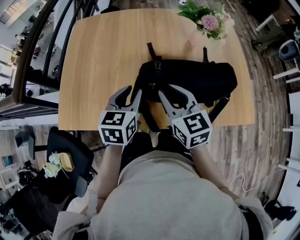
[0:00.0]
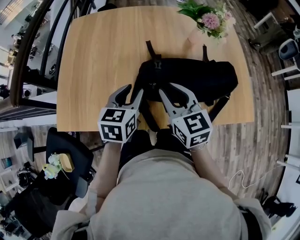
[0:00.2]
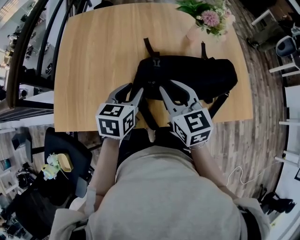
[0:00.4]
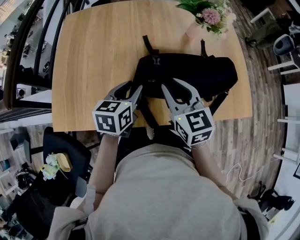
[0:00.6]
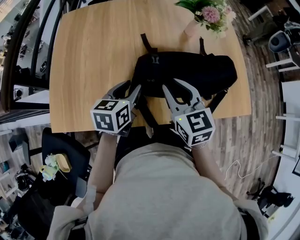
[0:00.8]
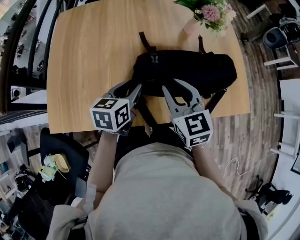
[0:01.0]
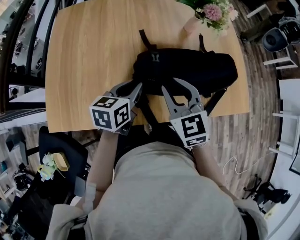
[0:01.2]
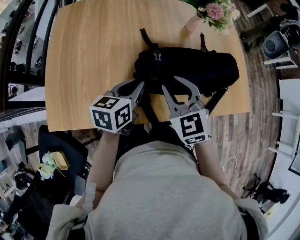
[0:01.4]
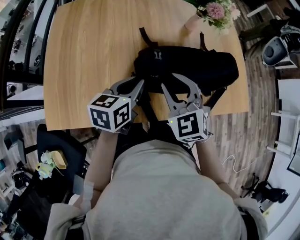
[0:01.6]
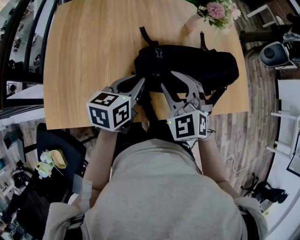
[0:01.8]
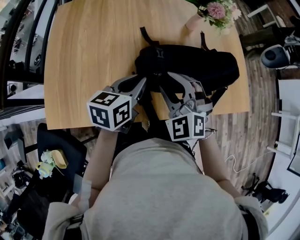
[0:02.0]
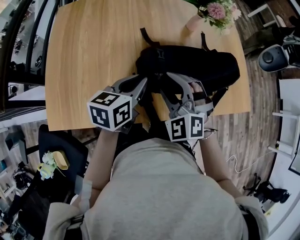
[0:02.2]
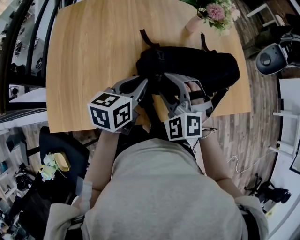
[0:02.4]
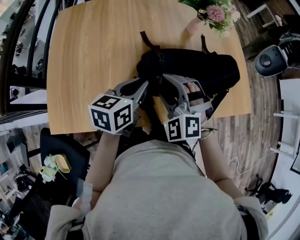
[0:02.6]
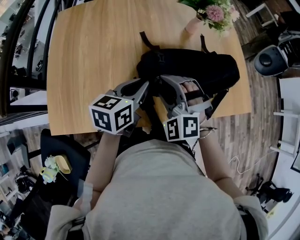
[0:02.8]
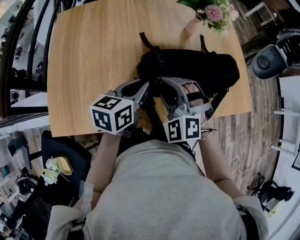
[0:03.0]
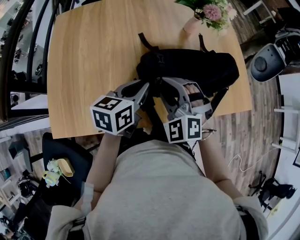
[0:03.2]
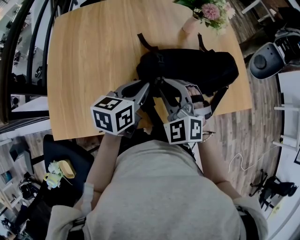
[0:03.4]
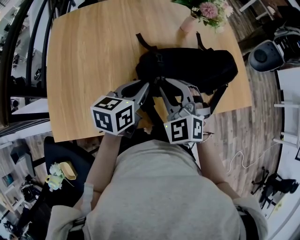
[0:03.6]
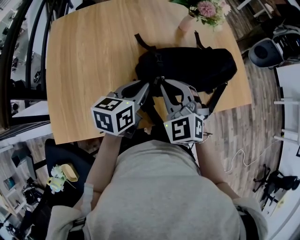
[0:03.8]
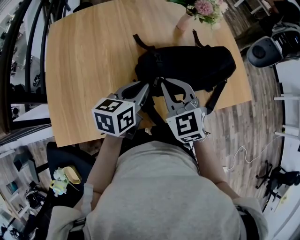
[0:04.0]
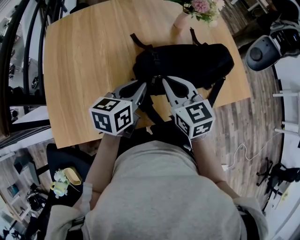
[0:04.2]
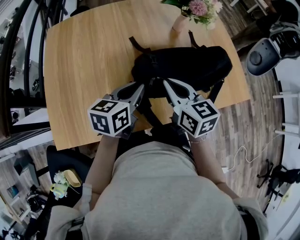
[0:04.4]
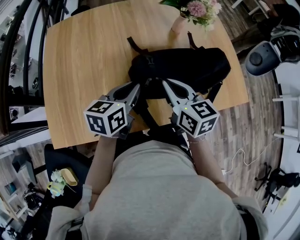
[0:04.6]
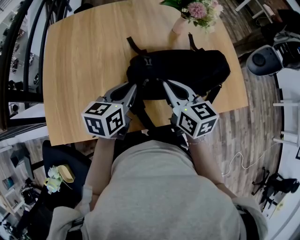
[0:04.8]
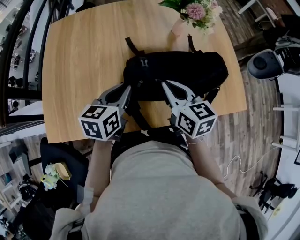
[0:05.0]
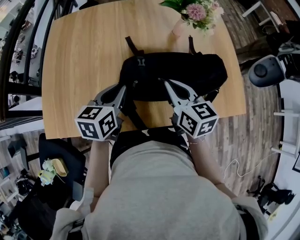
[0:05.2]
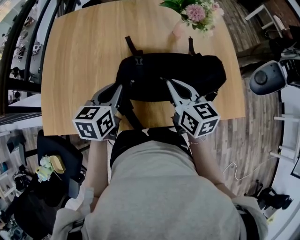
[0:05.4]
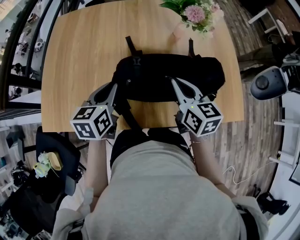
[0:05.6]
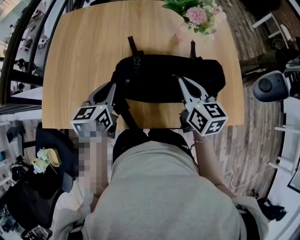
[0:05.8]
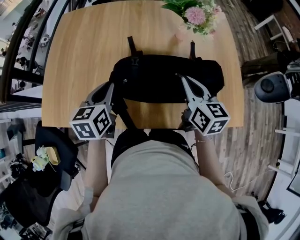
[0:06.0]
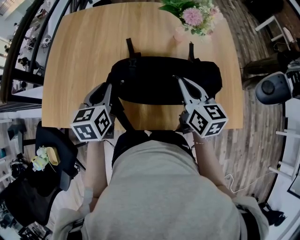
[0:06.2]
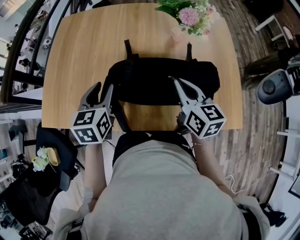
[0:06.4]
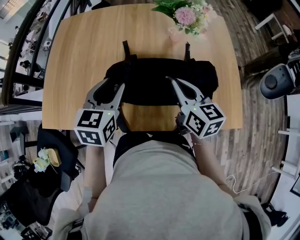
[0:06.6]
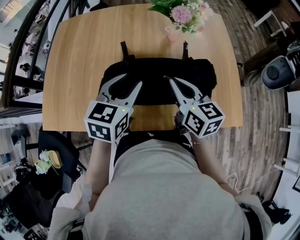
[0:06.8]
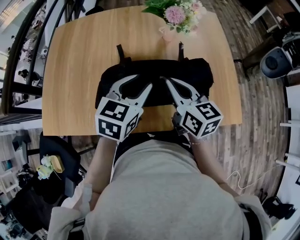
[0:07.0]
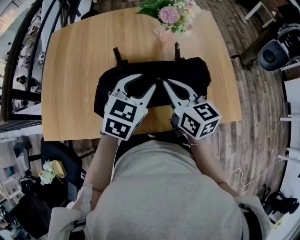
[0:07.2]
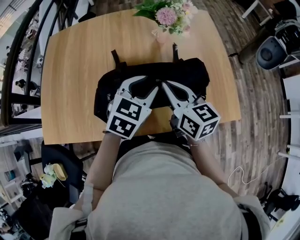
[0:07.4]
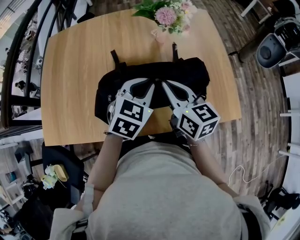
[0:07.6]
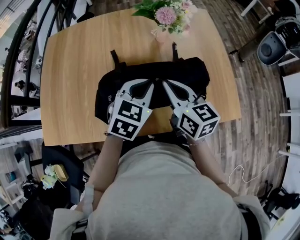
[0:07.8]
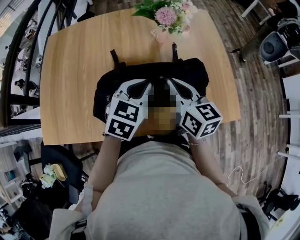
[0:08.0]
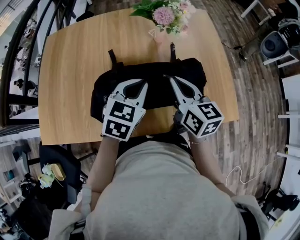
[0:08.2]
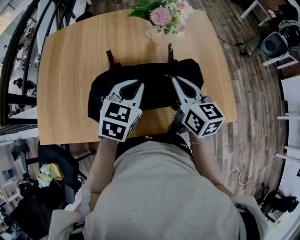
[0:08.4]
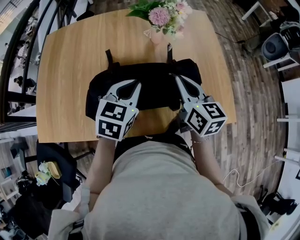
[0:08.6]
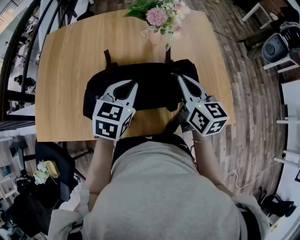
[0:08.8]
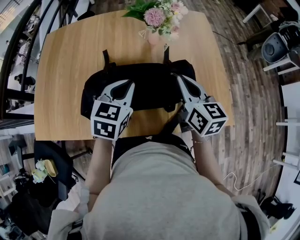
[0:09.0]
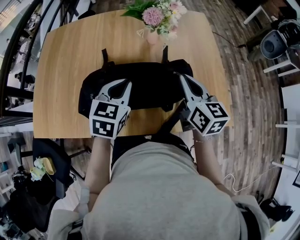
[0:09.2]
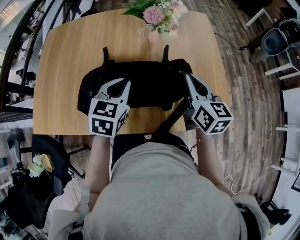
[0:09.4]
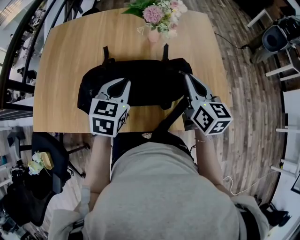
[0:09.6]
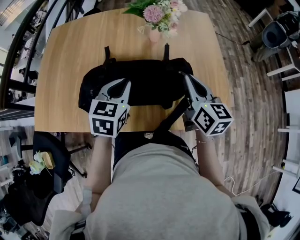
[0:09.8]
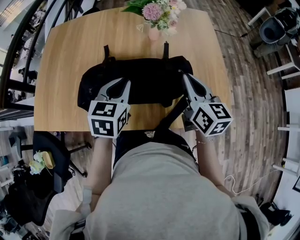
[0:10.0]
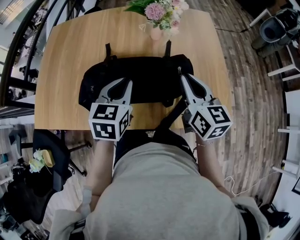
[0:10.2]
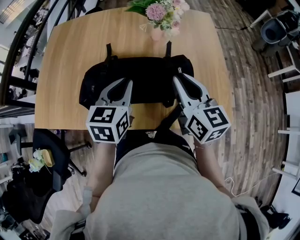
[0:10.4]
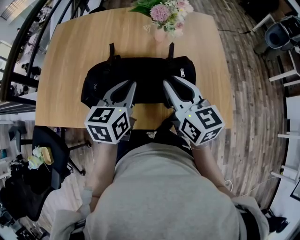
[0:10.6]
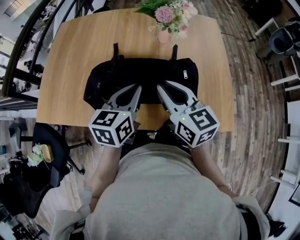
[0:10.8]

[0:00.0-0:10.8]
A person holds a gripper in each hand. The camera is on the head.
0:00.0 to 0:01.6: The right gripper rotates roughly 30 degrees; the left gripper turns by roughly 20 degrees.
0:01.6 to 0:03.0: The right gripper rotates about 30 degrees.
0:03.0 to 0:04.6: The right gripper changes place by some 5 cm, rotates around the line of its fingers by approximately 80 degrees, clockwise from behind, and closes its fingers.
0:04.6 to 0:06.2: The left gripper changes its angle by about 30 degrees, while the right gripper goes approximately 15 cm to the right.
0:06.2 to 0:07.8: The left gripper heads to the right, covering approximately 20 cm, swivels approximately 40 degrees, and opens, then closes once more.
0:07.8 to 0:09.2: The right gripper goes some 10 cm to the right.
0:09.2 to 0:10.8: The right gripper moves to the left and backward, roughly 10 cm, and swivels approximately 20 degrees; the left gripper moves about 5 cm, and rotates about 30 degrees.

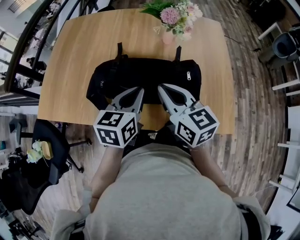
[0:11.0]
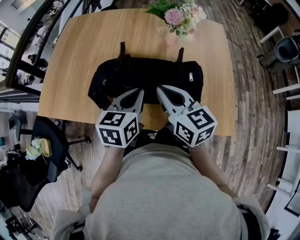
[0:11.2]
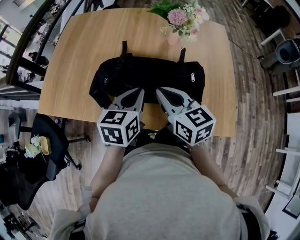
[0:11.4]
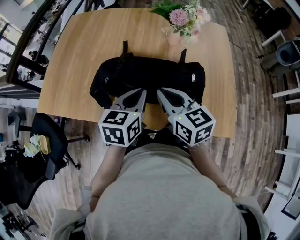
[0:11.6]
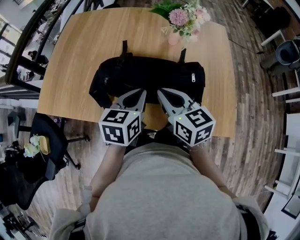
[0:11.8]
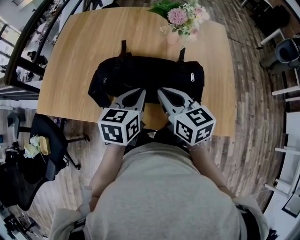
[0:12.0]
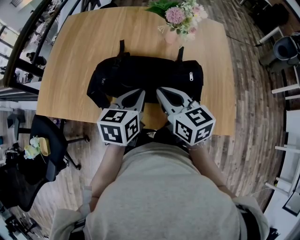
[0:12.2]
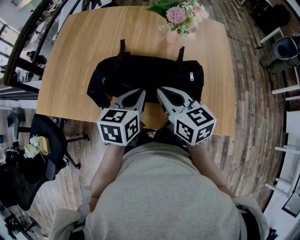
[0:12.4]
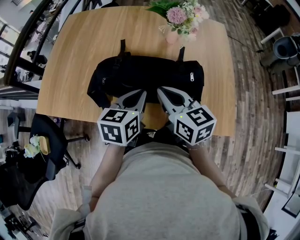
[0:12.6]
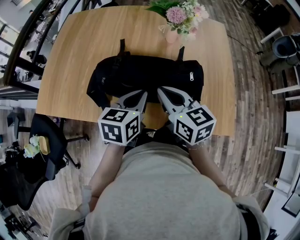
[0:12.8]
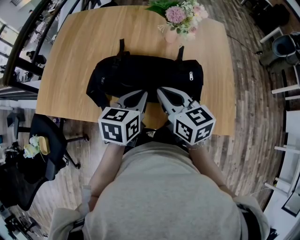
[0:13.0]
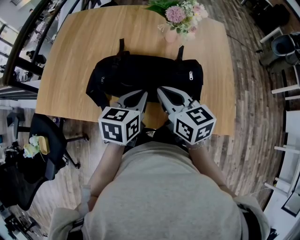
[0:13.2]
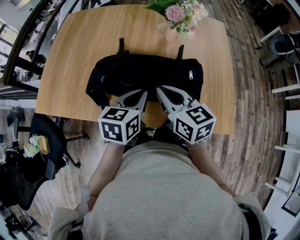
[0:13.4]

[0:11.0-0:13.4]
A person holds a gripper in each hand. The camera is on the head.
0:11.0 to 0:13.4: The grippers stay close to where they were, moving slightly.

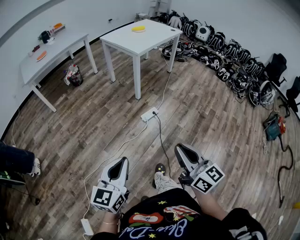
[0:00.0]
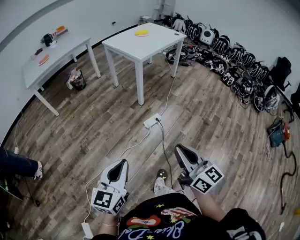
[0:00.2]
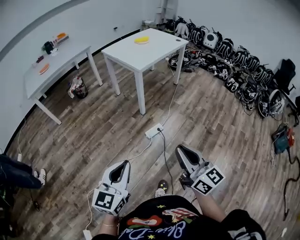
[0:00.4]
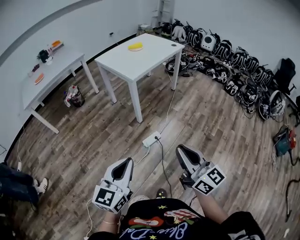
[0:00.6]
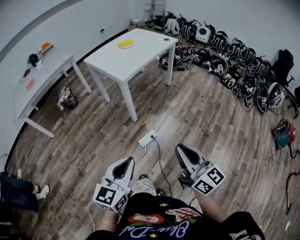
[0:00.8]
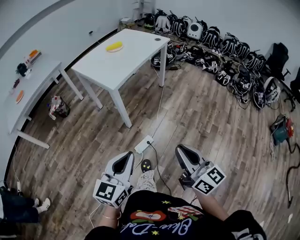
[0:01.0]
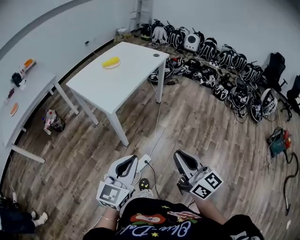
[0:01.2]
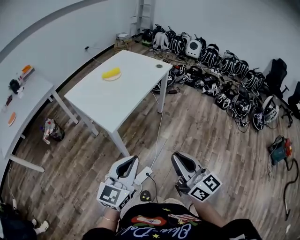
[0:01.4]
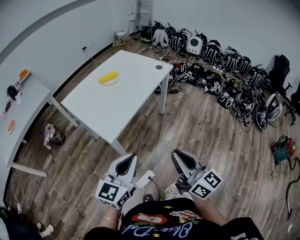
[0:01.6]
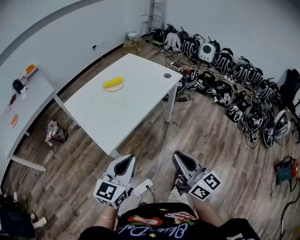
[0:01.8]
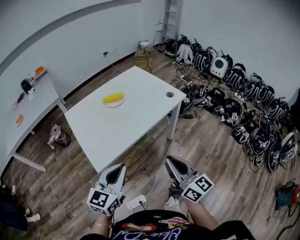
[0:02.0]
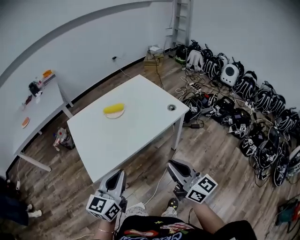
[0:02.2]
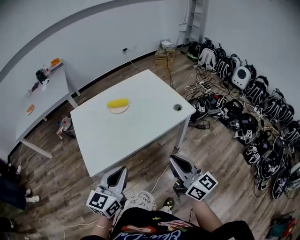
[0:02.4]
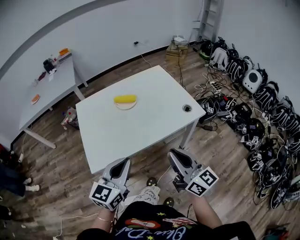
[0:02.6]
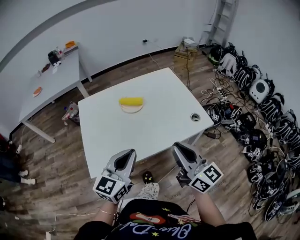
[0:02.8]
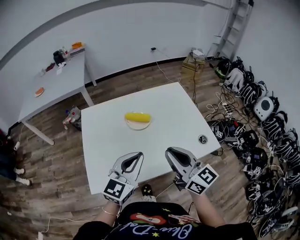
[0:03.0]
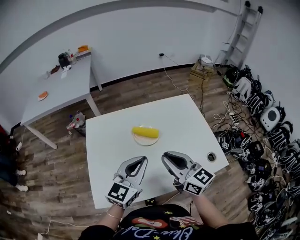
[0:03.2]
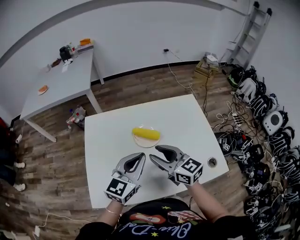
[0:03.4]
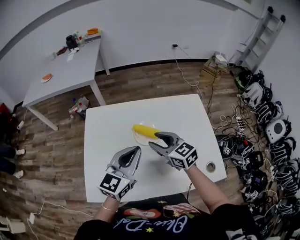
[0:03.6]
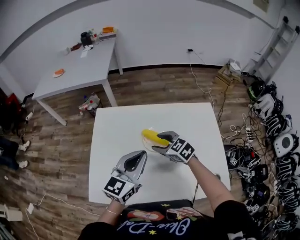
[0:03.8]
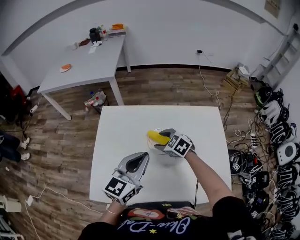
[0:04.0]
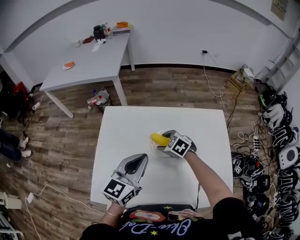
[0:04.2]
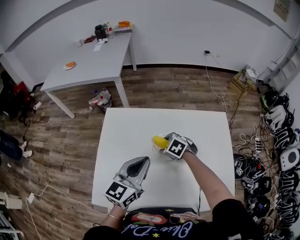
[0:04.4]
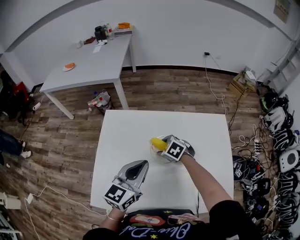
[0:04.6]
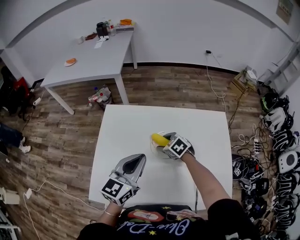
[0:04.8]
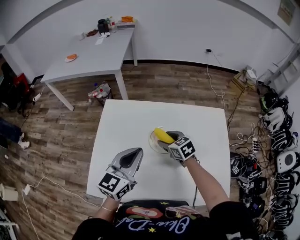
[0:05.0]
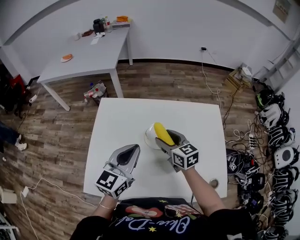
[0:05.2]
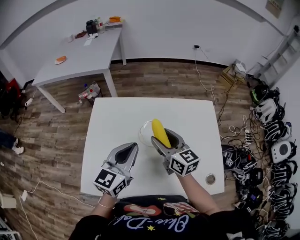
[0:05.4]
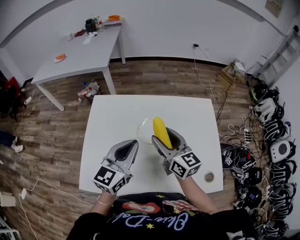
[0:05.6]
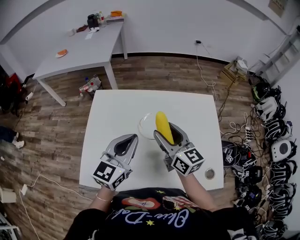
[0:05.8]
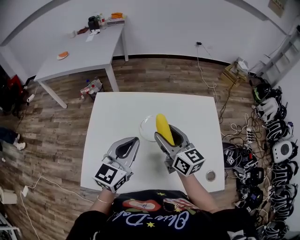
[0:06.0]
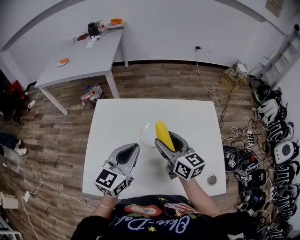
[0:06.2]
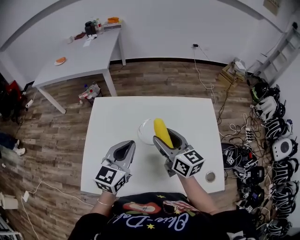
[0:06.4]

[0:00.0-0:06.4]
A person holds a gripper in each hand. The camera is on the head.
0:00.0 to 0:01.6: The two grippers travel together, forward, approximately 70 cm.
0:01.6 to 0:03.2: The pair of grippers is taken roughly 50 cm. The left gripper rotates some 30 degrees, while the right gripper rotates about 50 degrees.
0:03.2 to 0:04.8: The right gripper shifts by about 35 cm, points its fingers approximately 60 degrees further downward, and opens up. Meanwhile the left gripper changes place by about 15 cm, and rotates about 20 degrees.
0:04.8 to 0:06.4: The right gripper shifts roughly 20 cm upward and backward, and tips its fingers upward by some 50 degrees.

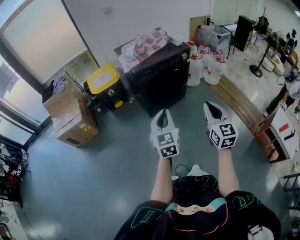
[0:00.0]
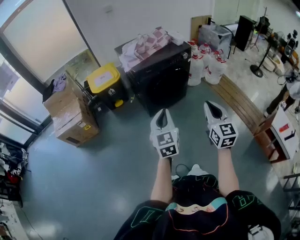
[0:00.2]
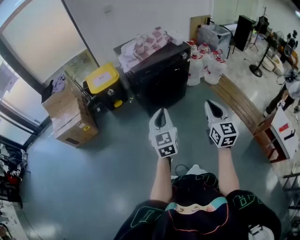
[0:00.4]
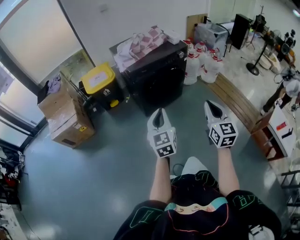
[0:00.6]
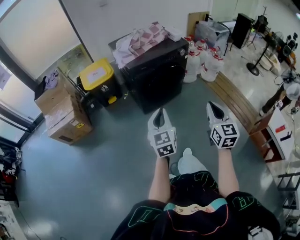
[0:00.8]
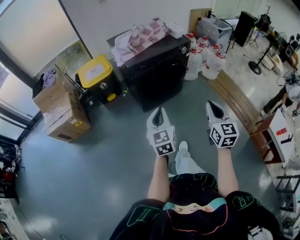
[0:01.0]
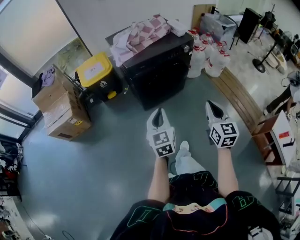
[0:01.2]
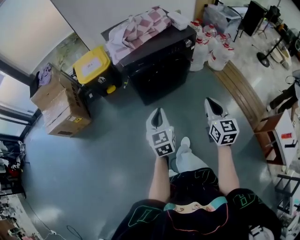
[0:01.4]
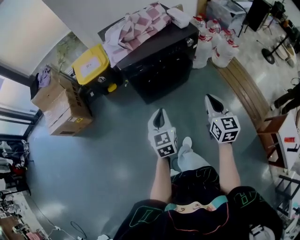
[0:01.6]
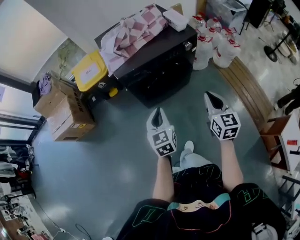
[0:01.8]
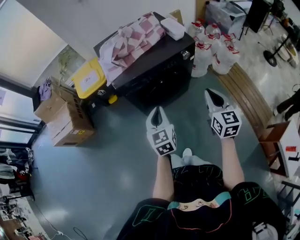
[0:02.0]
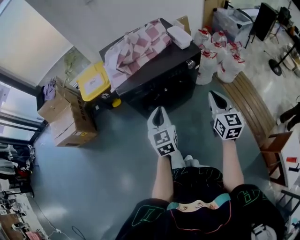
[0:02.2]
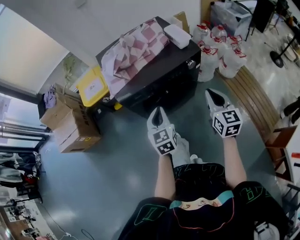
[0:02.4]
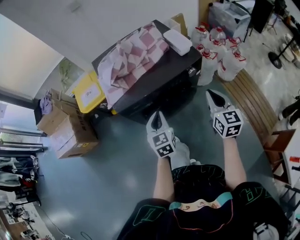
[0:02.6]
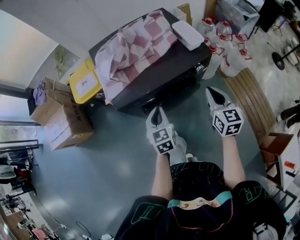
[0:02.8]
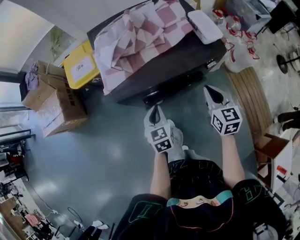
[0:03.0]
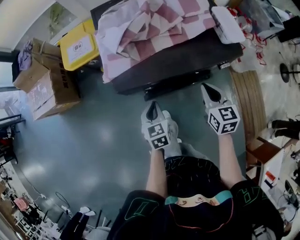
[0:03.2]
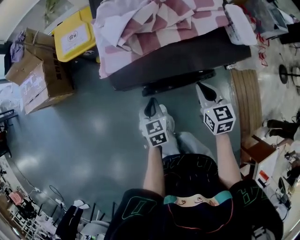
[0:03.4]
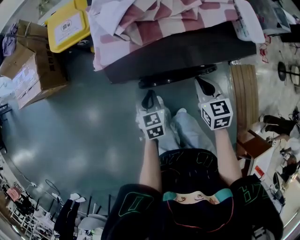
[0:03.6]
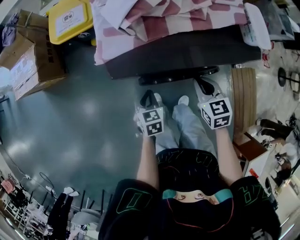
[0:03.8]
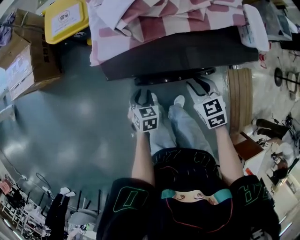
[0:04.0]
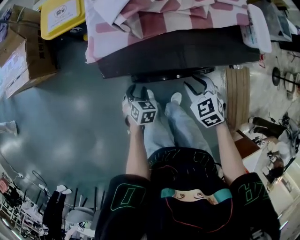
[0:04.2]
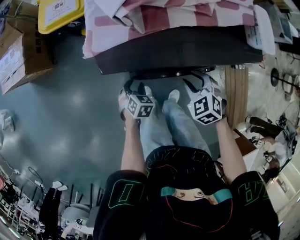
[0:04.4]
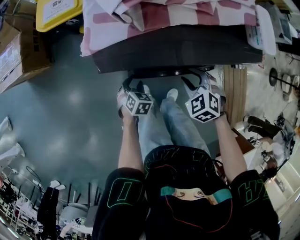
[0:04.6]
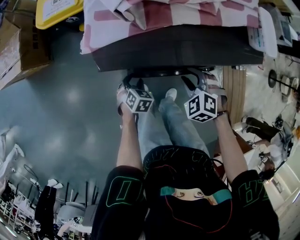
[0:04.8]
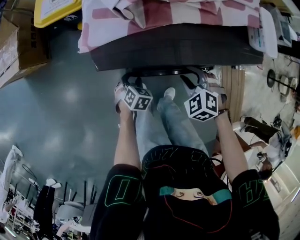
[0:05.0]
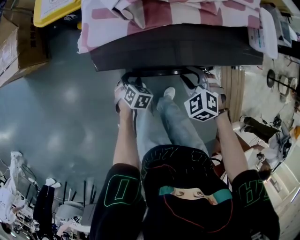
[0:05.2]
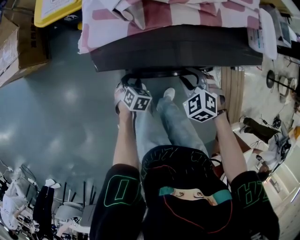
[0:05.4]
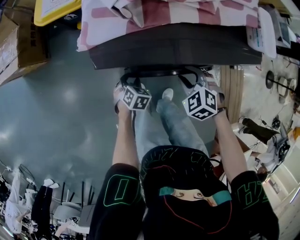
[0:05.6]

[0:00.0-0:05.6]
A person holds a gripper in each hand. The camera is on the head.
0:00.0 to 0:01.4: The two grippers go roughly 20 cm forward and downward.
0:01.4 to 0:02.8: Both grippers move forward, approximately 30 cm.
0:02.8 to 0:04.2: The right gripper shifts some 25 cm downward and to the left, points its fingers roughly 40 degrees further downward, and opens up. The left gripper heads downward, covering approximately 25 cm, tilts its fingers approximately 30 degrees downward, and opens its fingers.
0:04.2 to 0:05.6: The right gripper swivels approximately 20 degrees; the left gripper shifts some 5 cm downward.
